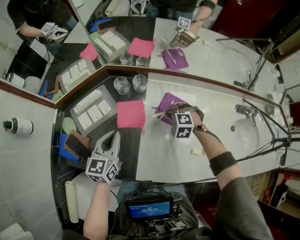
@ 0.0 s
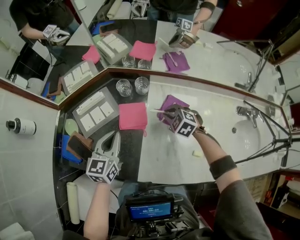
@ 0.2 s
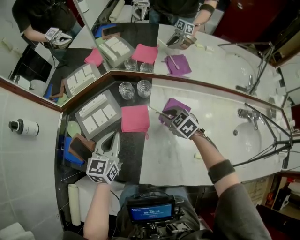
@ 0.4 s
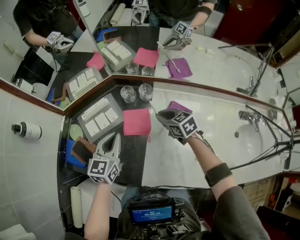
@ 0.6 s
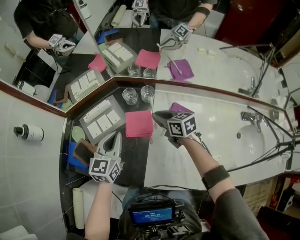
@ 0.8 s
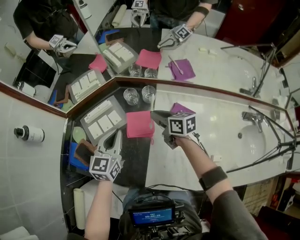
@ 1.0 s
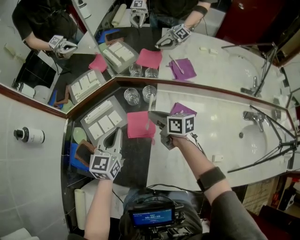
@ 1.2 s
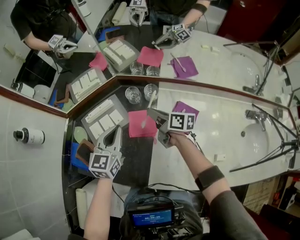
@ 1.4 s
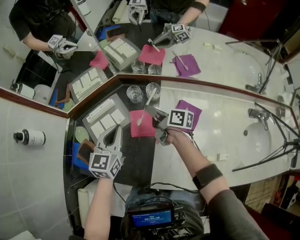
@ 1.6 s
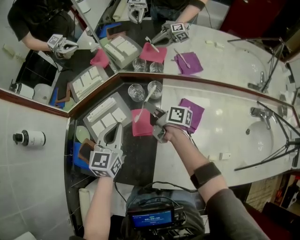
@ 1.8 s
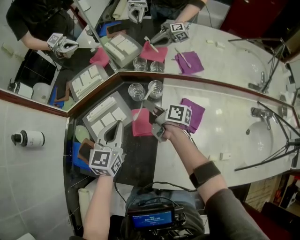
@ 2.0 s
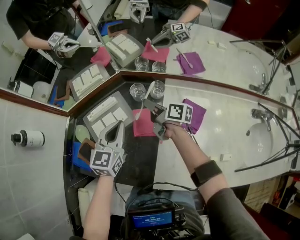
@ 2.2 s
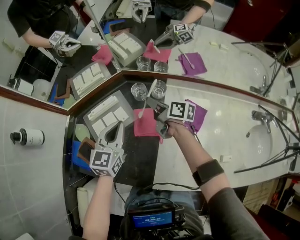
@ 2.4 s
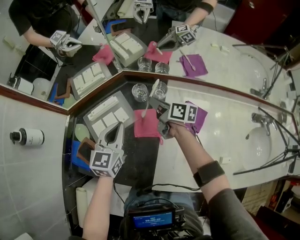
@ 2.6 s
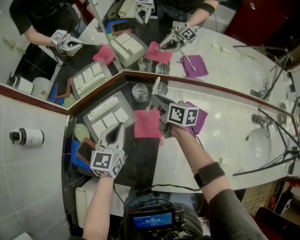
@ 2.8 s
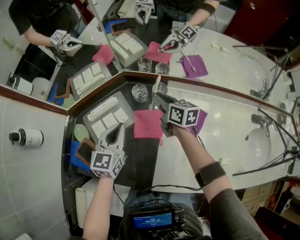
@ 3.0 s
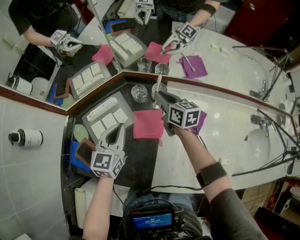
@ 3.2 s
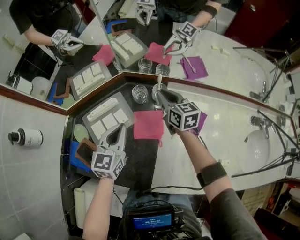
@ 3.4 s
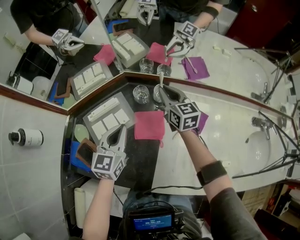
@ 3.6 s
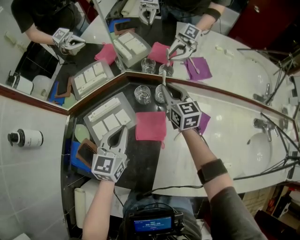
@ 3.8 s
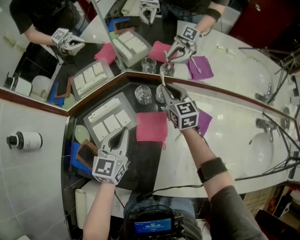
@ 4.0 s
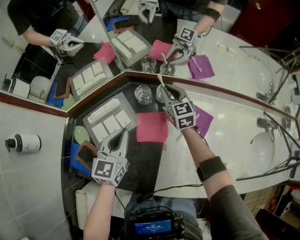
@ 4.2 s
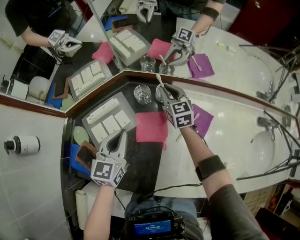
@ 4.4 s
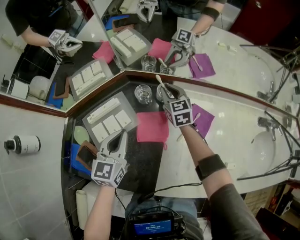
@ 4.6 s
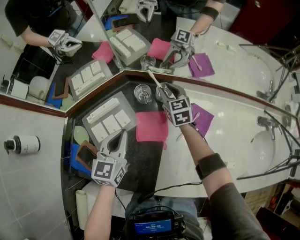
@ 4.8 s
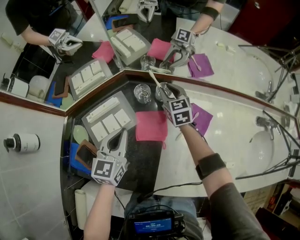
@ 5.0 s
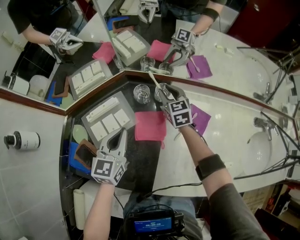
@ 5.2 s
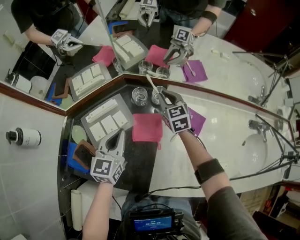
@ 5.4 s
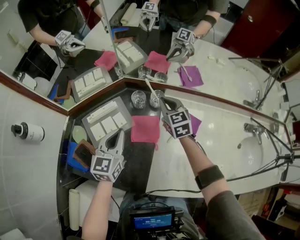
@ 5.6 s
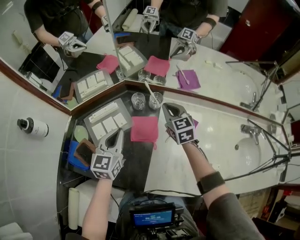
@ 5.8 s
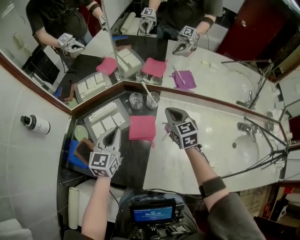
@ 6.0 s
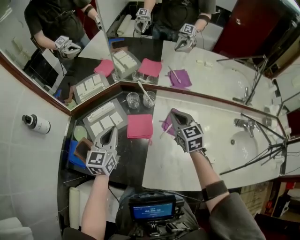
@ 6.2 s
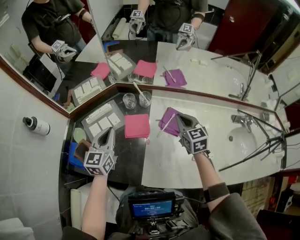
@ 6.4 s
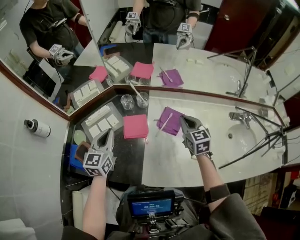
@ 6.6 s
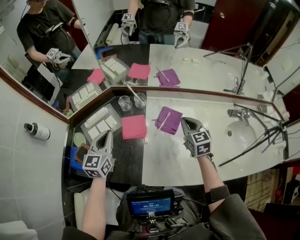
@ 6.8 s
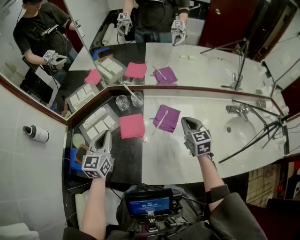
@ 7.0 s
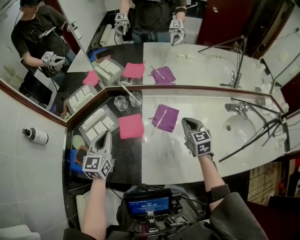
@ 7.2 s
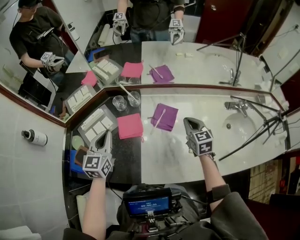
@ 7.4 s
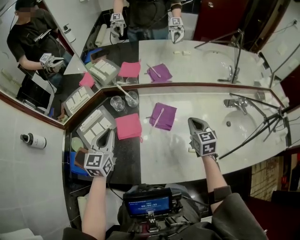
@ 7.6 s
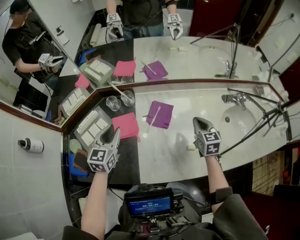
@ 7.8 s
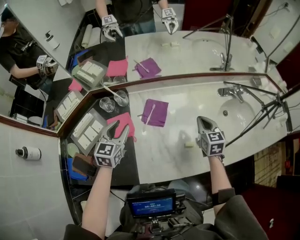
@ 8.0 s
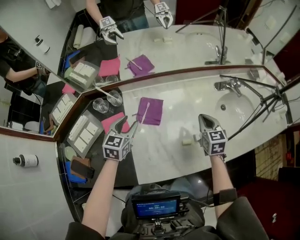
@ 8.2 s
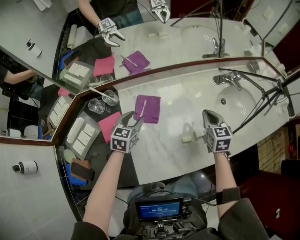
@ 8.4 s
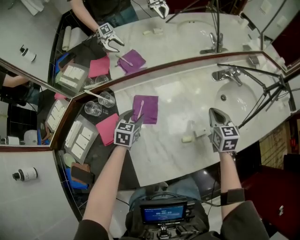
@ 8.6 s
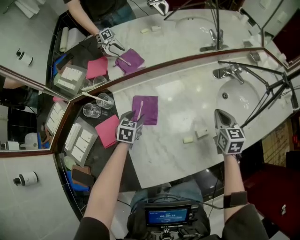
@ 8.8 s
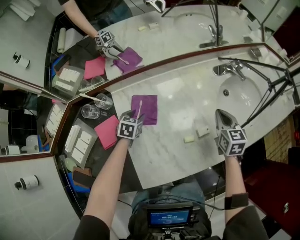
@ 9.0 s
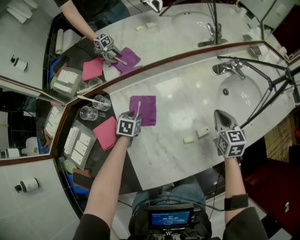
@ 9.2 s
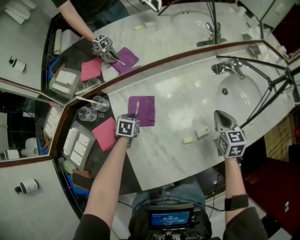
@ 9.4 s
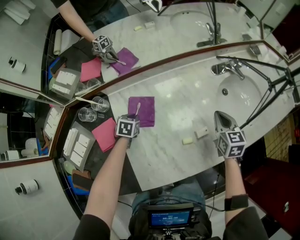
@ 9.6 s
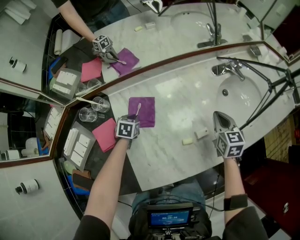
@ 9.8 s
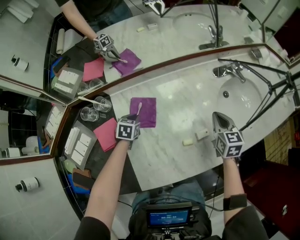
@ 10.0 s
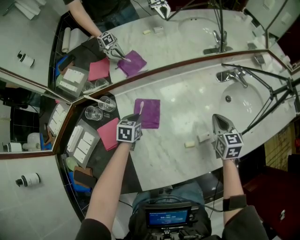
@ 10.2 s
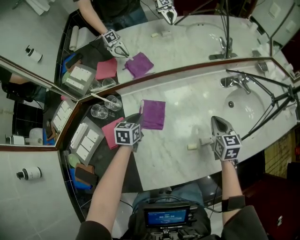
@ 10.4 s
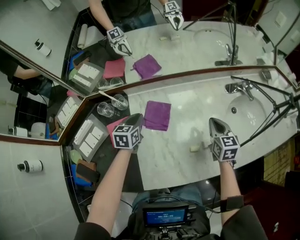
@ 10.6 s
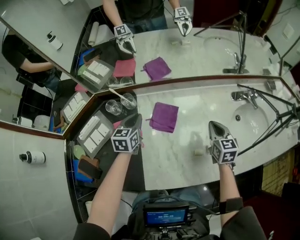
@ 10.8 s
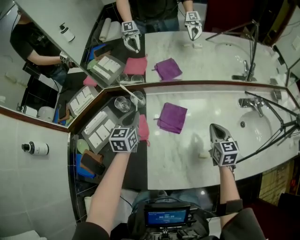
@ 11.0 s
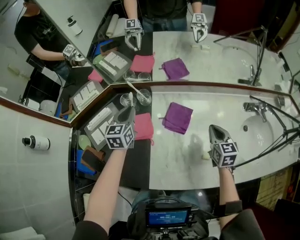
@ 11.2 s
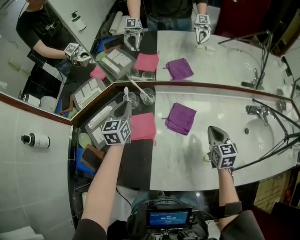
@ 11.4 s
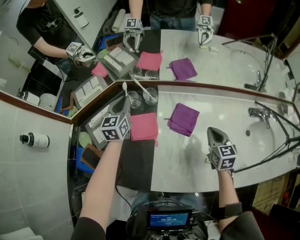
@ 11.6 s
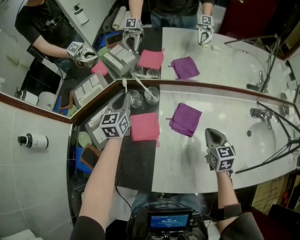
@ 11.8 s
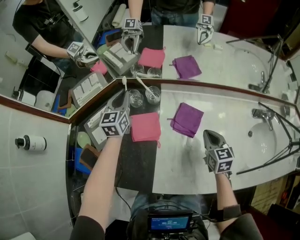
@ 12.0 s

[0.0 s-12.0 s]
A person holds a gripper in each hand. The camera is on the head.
0.0 to 1.6 s: The right gripper heads to the left, forward and upward, covering roughly 20 cm, and rotates around the line of its fingers by some 100 degrees, clockwise from behind. Meanwhile the left gripper moves forward, roughly 10 cm.
1.6 to 3.0 s: The right gripper travels forward by some 5 cm, and swivels approximately 30 degrees.
3.0 to 4.4 s: The right gripper is displaced forward by approximately 5 cm, and turns by about 40 degrees.
4.4 to 6.0 s: The left gripper is displaced upward by about 5 cm, while the right gripper is displaced backward and upward by roughly 15 cm.
6.0 to 7.6 s: The left gripper goes about 5 cm to the right. Meanwhile the right gripper is displaced to the right and backward by some 25 cm, and turns by roughly 20 degrees.
7.6 to 9.0 s: The right gripper changes place by roughly 20 cm, and changes its angle by approximately 20 degrees. The left gripper is displaced downward by approximately 25 cm, angles its fingers downward, by about 30 degrees, and opens its fingers.
9.0 to 10.4 s: The left gripper goes about 10 cm upward, and closes its fingers.
10.4 to 12.0 s: The left gripper shifts by some 30 cm, and changes its angle by some 40 degrees; the right gripper changes place by approximately 25 cm, and changes its angle by roughly 20 degrees.

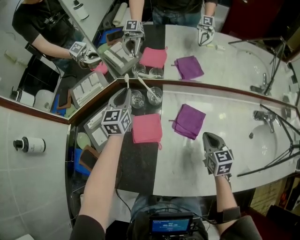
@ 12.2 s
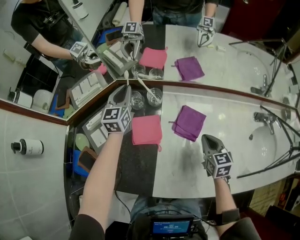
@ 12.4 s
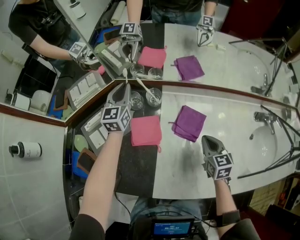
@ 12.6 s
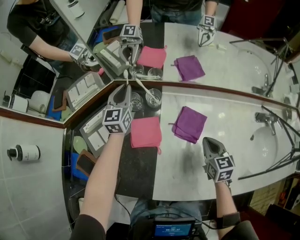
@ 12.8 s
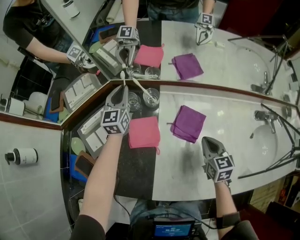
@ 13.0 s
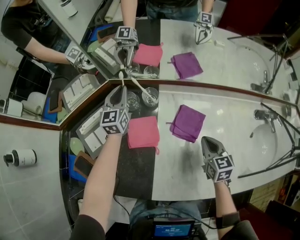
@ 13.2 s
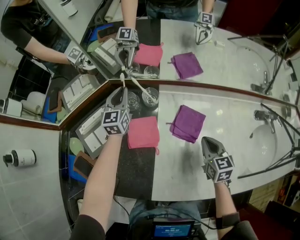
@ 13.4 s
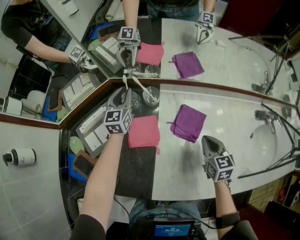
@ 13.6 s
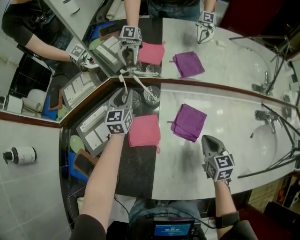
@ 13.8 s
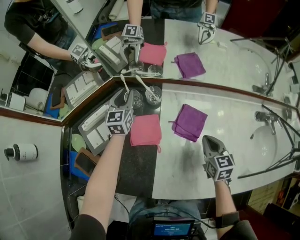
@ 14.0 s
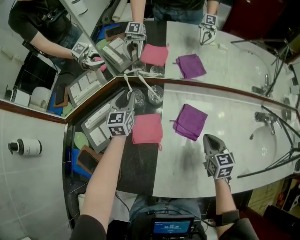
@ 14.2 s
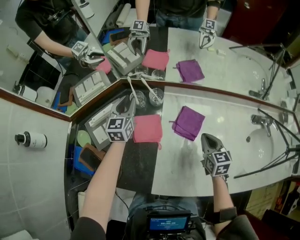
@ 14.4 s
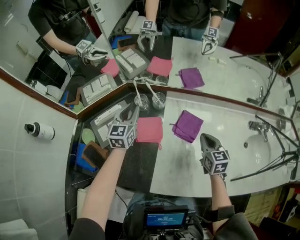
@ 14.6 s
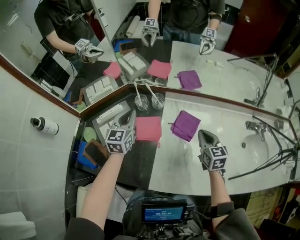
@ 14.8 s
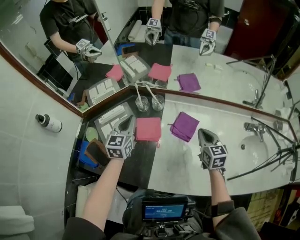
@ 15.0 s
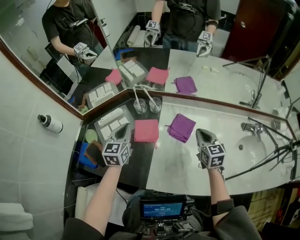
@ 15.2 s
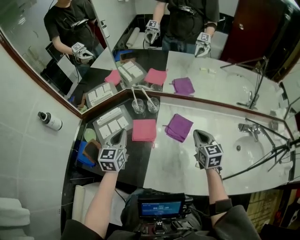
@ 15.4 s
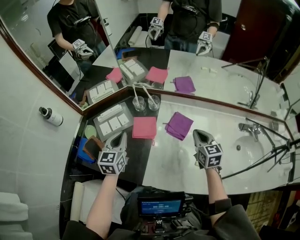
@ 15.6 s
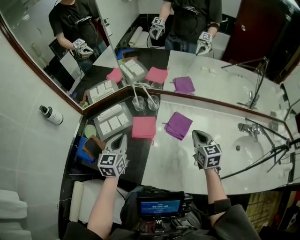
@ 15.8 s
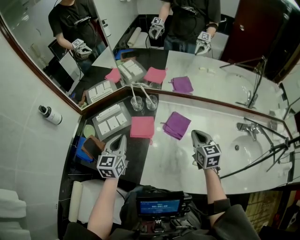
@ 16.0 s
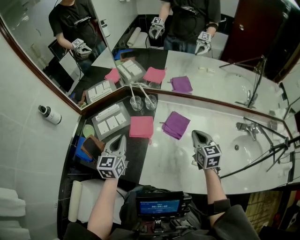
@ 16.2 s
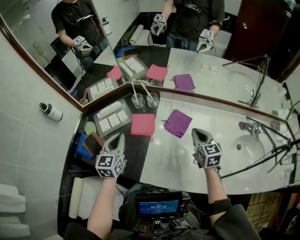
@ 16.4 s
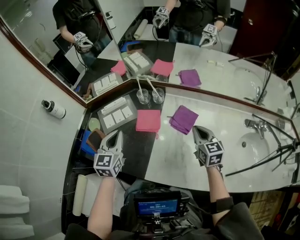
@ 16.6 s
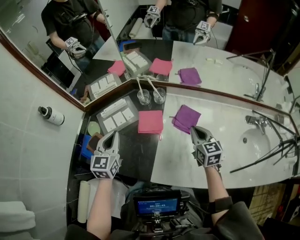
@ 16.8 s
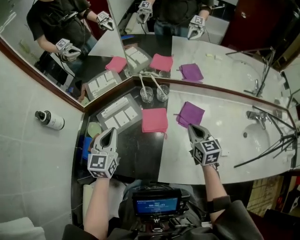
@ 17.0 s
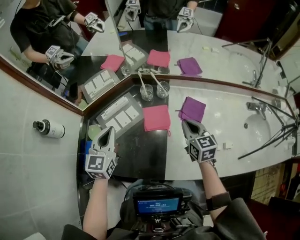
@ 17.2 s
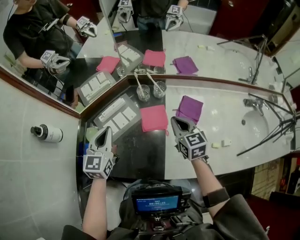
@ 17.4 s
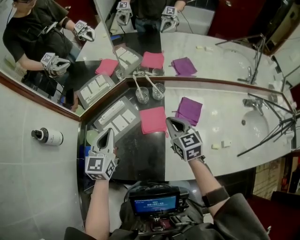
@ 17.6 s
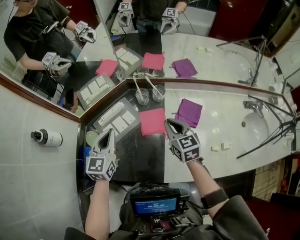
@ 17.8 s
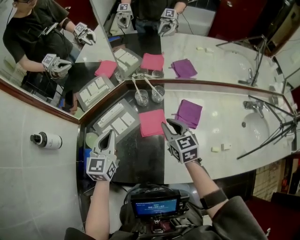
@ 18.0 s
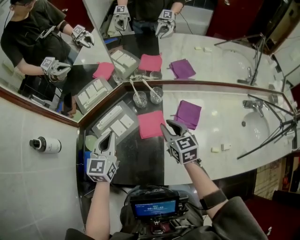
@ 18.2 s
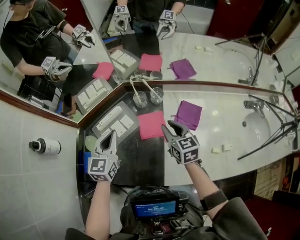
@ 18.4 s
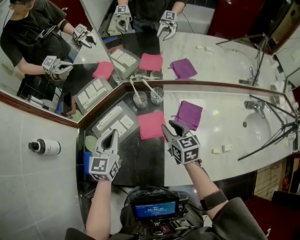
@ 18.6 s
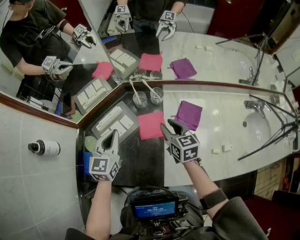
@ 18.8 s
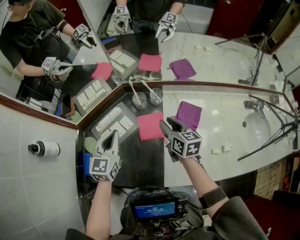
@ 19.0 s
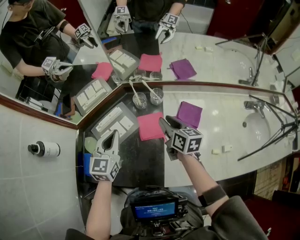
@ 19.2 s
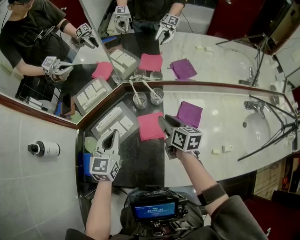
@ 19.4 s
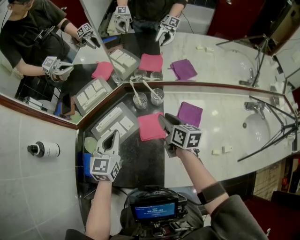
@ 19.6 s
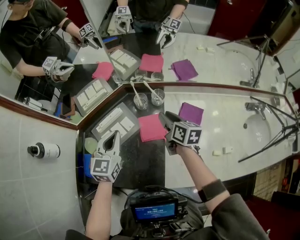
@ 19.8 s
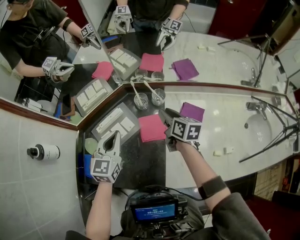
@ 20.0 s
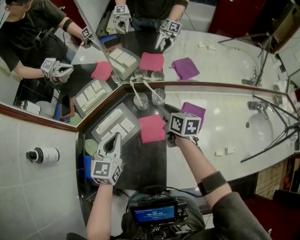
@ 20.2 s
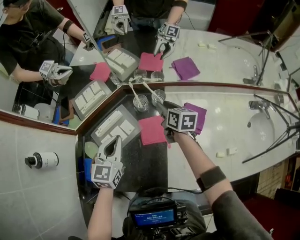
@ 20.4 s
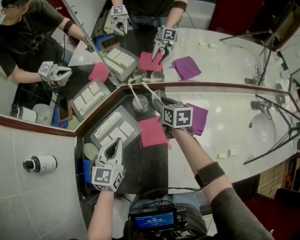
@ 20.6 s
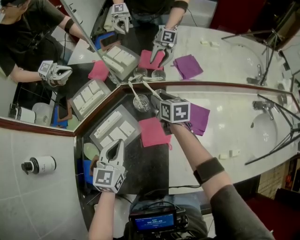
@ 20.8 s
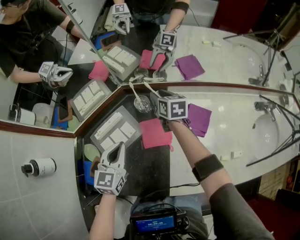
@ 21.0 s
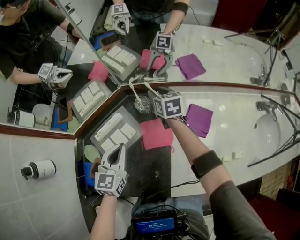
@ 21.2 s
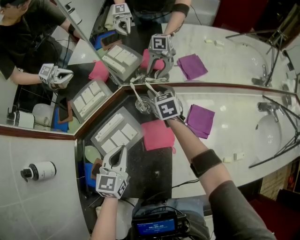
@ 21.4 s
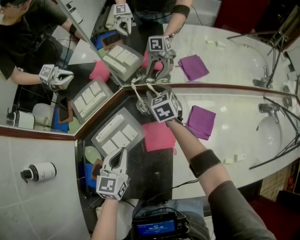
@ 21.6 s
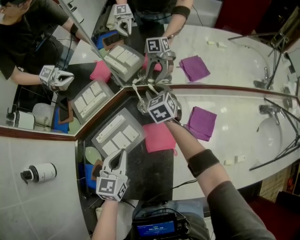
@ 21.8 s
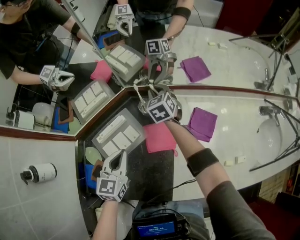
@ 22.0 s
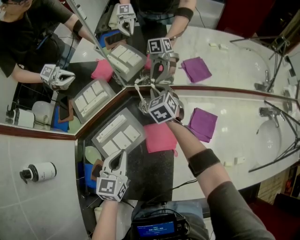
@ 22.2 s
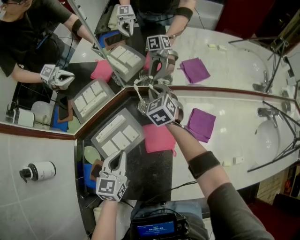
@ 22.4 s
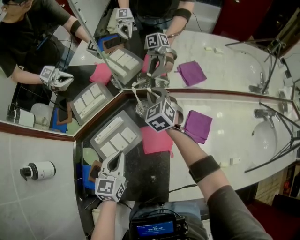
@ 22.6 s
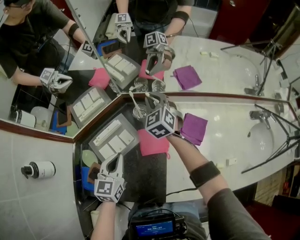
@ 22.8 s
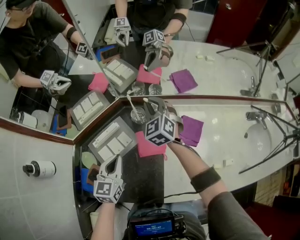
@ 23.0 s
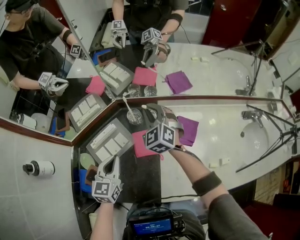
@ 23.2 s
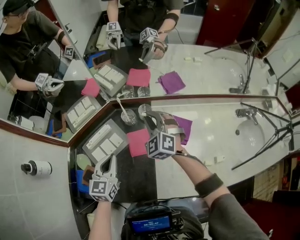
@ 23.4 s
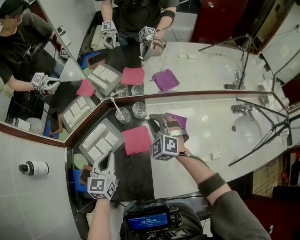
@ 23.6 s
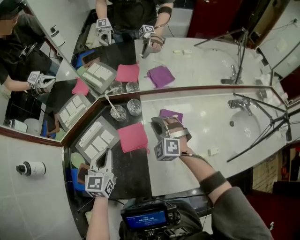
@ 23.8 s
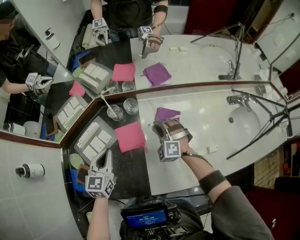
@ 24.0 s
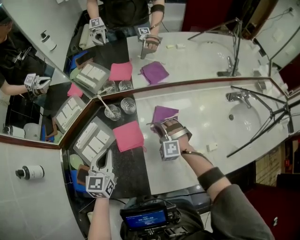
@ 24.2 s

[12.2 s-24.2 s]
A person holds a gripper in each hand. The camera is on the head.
12.2 to 13.8 s: The left gripper moves downward, approximately 5 cm.
13.8 to 15.2 s: The left gripper travels backward and upward by approximately 25 cm, and closes up; the right gripper heads upward, covering about 10 cm.
15.2 to 16.6 s: The left gripper heads backward, covering approximately 10 cm.
16.6 to 18.2 s: The left gripper heads forward and to the left, covering roughly 15 cm. The right gripper is displaced to the left by roughly 20 cm, and opens.
18.2 to 19.8 s: The right gripper travels forward by roughly 5 cm, and rotates some 30 degrees.
19.8 to 21.2 s: The left gripper goes some 5 cm downward, while the right gripper goes roughly 15 cm forward and downward, and turns by some 20 degrees.
21.2 to 22.6 s: The right gripper goes approximately 5 cm upward, changes its angle by roughly 40 degrees, and closes up.
22.6 to 24.2 s: The right gripper moves backward and to the right, roughly 25 cm, and rotates around the line of its fingers by approximately 50 degrees, counterclockwise from behind. Meanwhile the left gripper shifts approximately 10 cm to the right.
